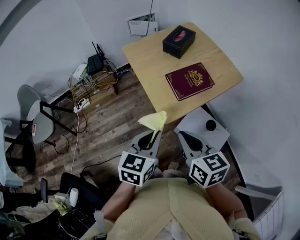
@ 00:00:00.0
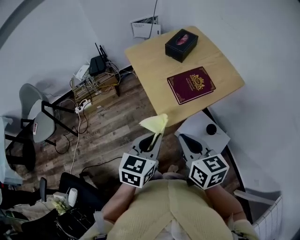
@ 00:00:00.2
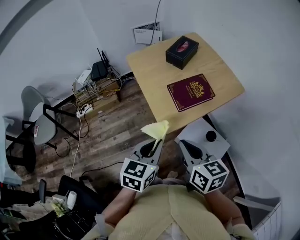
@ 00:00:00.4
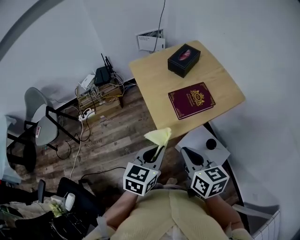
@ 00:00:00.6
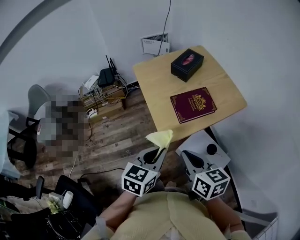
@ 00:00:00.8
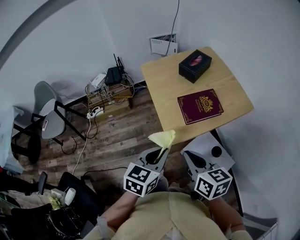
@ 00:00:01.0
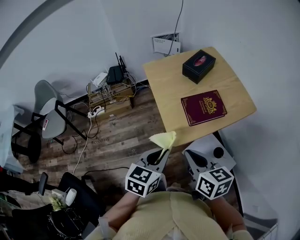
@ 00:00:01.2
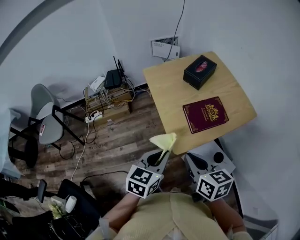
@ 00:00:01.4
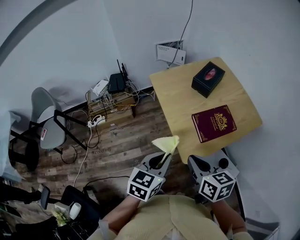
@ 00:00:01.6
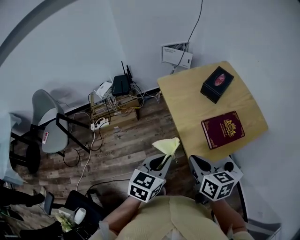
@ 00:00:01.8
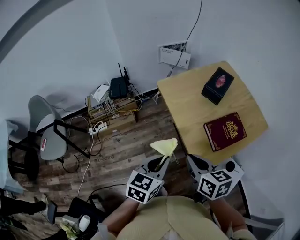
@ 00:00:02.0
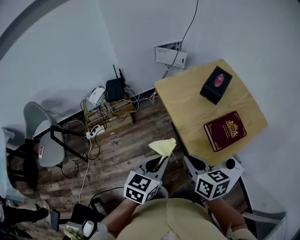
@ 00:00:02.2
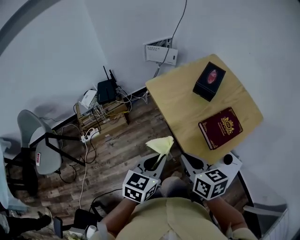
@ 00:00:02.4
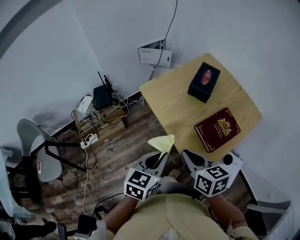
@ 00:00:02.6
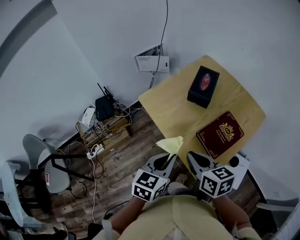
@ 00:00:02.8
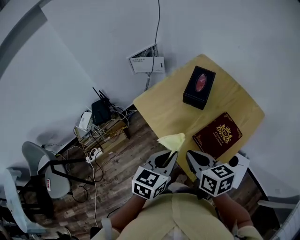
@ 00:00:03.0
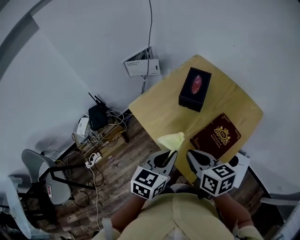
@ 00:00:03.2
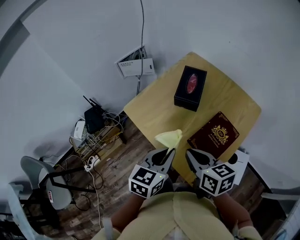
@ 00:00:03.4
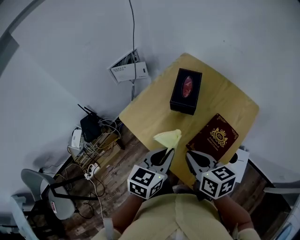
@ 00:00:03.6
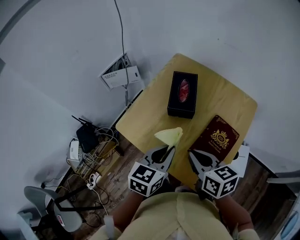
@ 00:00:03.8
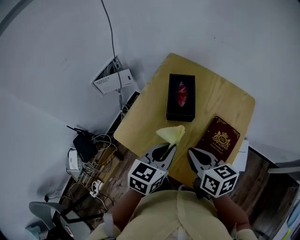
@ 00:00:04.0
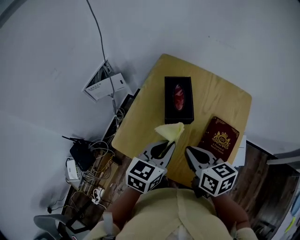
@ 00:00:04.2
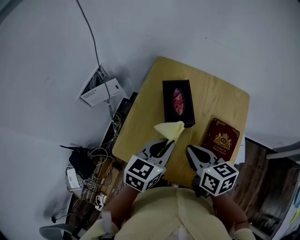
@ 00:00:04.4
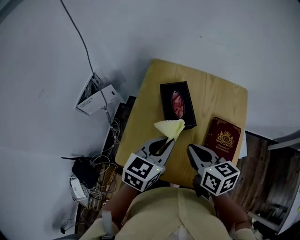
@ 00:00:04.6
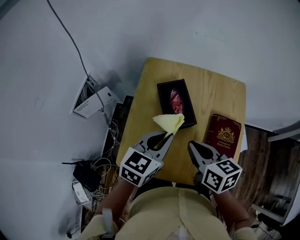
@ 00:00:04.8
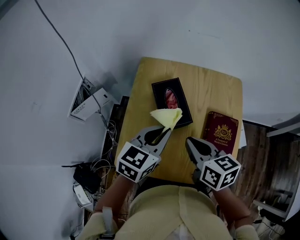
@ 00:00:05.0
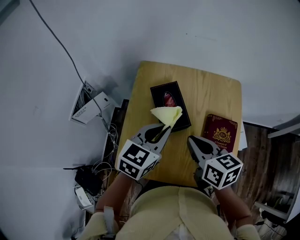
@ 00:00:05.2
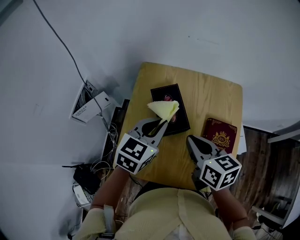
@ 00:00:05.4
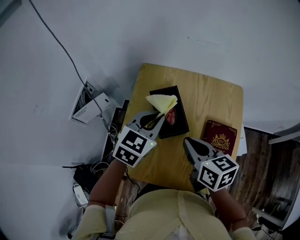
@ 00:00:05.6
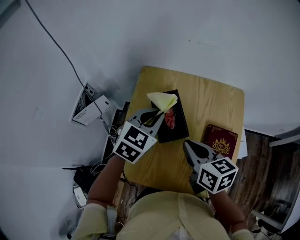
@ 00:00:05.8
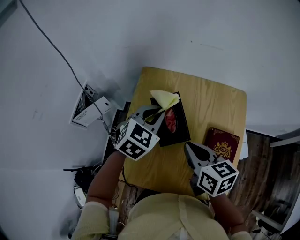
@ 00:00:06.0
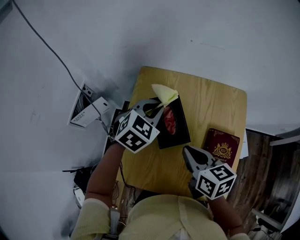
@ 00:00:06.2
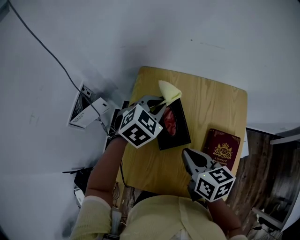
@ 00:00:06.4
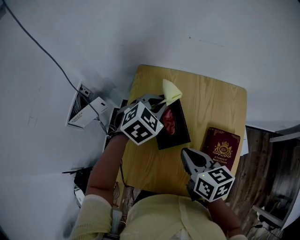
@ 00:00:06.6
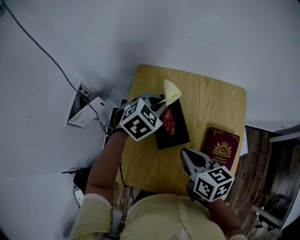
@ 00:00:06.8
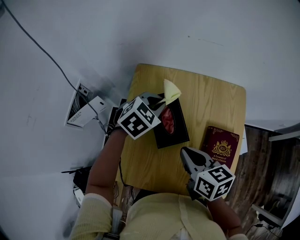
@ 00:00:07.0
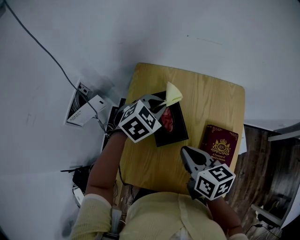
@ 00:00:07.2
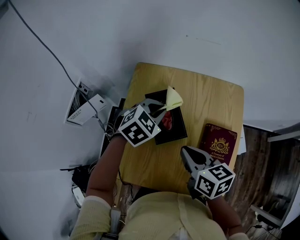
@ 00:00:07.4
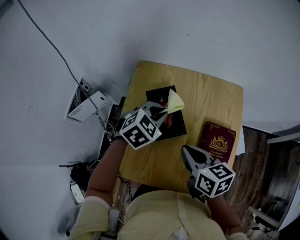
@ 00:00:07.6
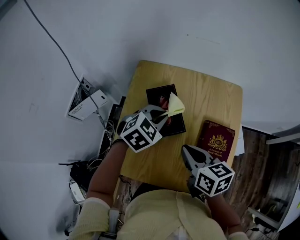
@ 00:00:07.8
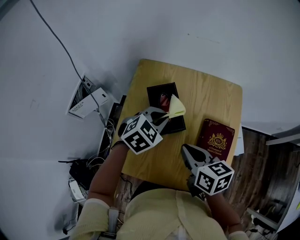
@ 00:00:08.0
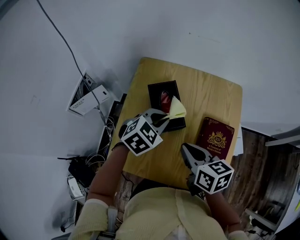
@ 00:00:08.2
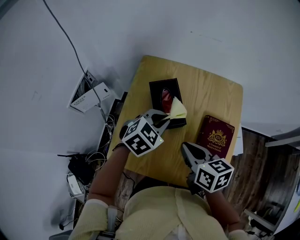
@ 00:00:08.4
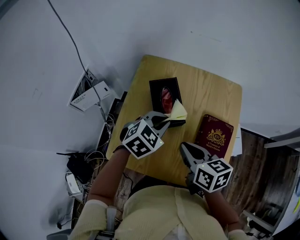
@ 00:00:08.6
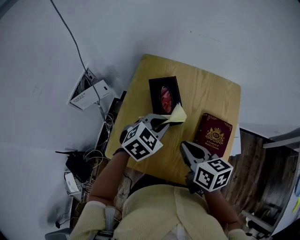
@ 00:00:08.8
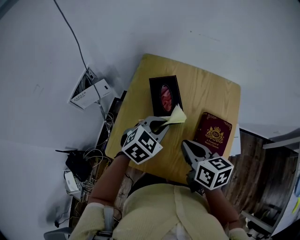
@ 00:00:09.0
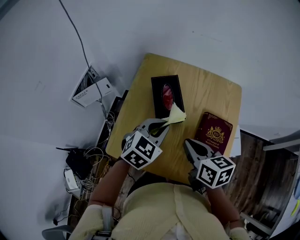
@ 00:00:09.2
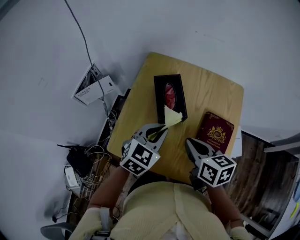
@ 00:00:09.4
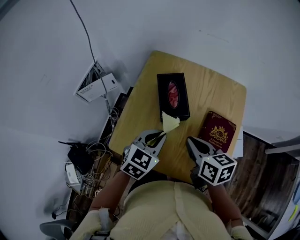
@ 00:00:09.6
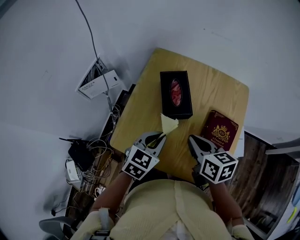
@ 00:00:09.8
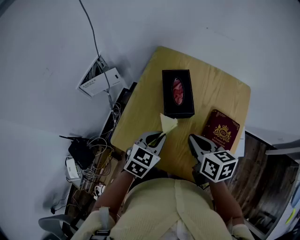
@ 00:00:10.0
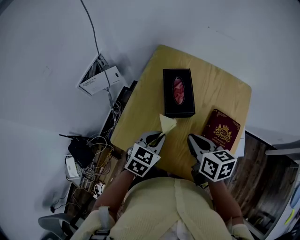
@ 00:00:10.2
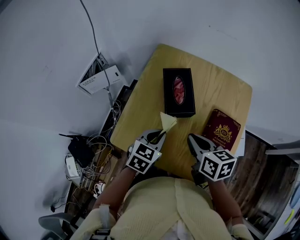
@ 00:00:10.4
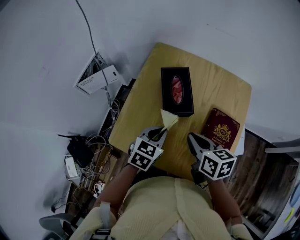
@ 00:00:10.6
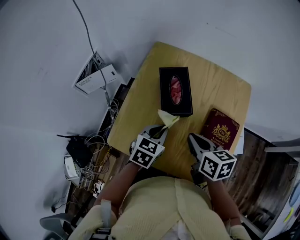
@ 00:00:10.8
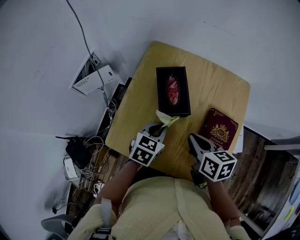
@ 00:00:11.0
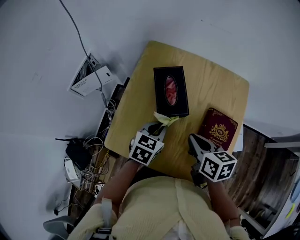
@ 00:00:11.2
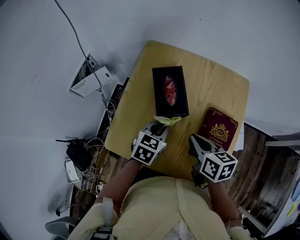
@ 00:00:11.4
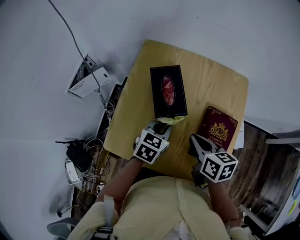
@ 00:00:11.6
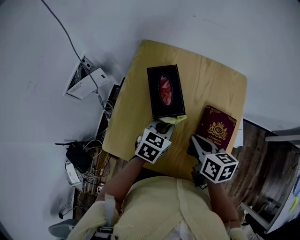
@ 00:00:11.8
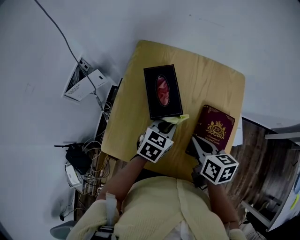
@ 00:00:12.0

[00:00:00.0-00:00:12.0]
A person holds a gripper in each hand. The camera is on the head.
00:00:00.0 to 00:00:01.6: The left gripper shifts roughly 10 cm forward and to the left, while the right gripper is displaced forward by roughly 10 cm.
00:00:01.6 to 00:00:03.0: The grippers both shift forward by approximately 15 cm.
00:00:03.0 to 00:00:04.4: The right gripper moves approximately 15 cm, and rotates about 30 degrees, while the left gripper changes place by approximately 20 cm, and changes its angle by approximately 30 degrees.
00:00:04.4 to 00:00:06.0: The right gripper goes approximately 10 cm forward. Meanwhile the left gripper moves forward, roughly 20 cm, and changes its angle by roughly 30 degrees.
00:00:06.0 to 00:00:07.6: The left gripper shifts by some 5 cm.
00:00:07.6 to 00:00:09.0: The left gripper travels backward by about 10 cm.
00:00:09.0 to 00:00:10.4: The left gripper goes roughly 10 cm backward and downward, and changes its angle by about 20 degrees.
00:00:10.4 to 00:00:12.0: The left gripper travels to the right and forward by about 10 cm. The right gripper is displaced to the right by roughly 5 cm.

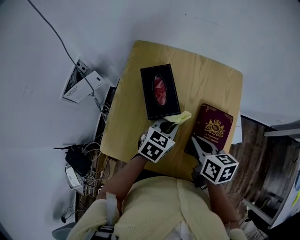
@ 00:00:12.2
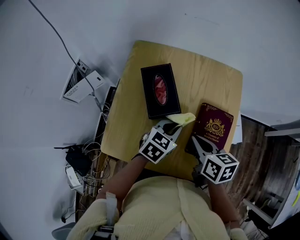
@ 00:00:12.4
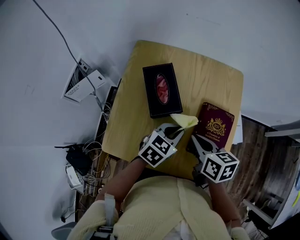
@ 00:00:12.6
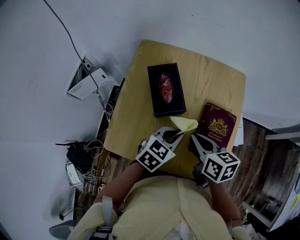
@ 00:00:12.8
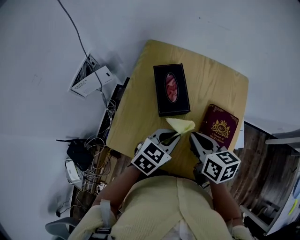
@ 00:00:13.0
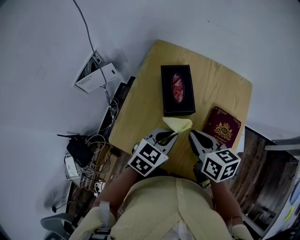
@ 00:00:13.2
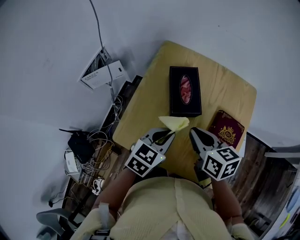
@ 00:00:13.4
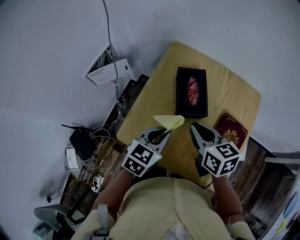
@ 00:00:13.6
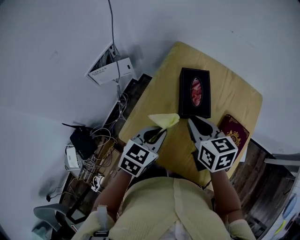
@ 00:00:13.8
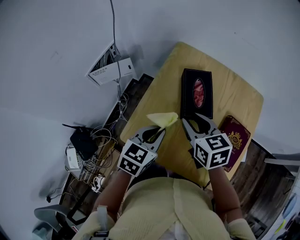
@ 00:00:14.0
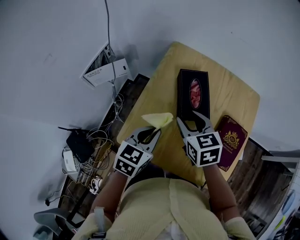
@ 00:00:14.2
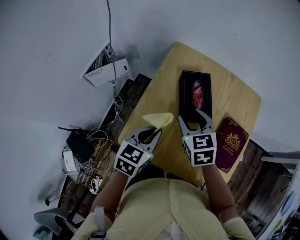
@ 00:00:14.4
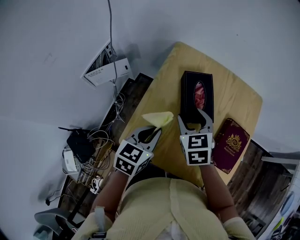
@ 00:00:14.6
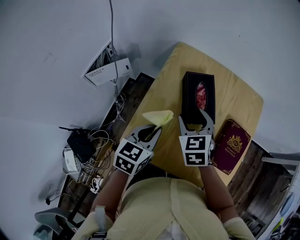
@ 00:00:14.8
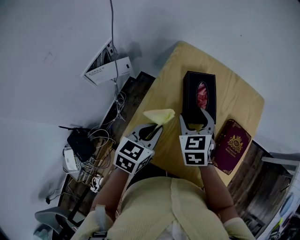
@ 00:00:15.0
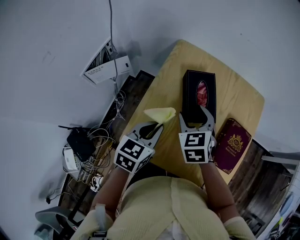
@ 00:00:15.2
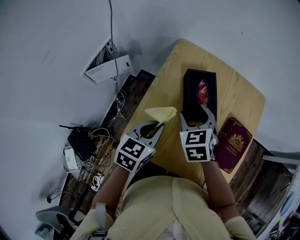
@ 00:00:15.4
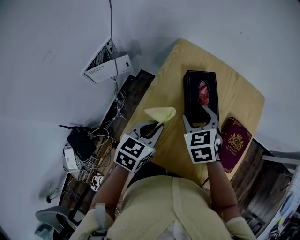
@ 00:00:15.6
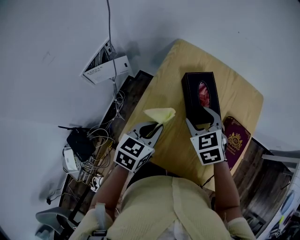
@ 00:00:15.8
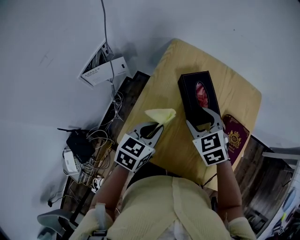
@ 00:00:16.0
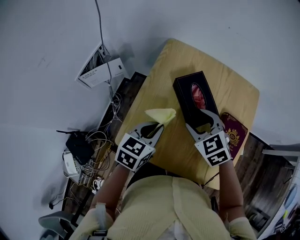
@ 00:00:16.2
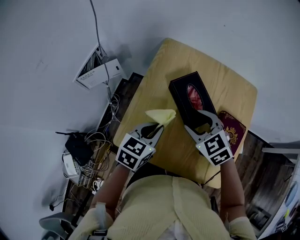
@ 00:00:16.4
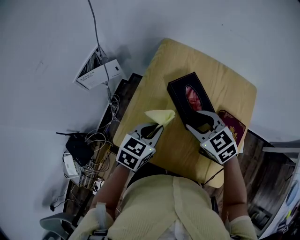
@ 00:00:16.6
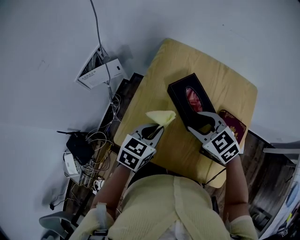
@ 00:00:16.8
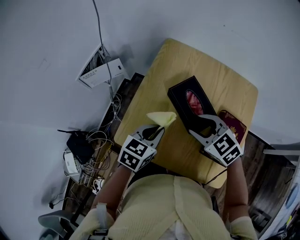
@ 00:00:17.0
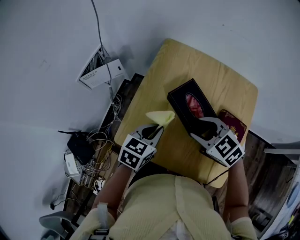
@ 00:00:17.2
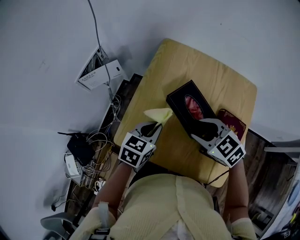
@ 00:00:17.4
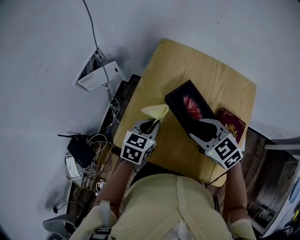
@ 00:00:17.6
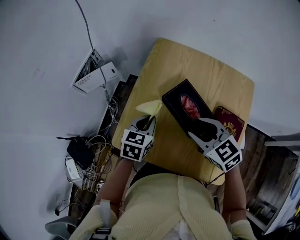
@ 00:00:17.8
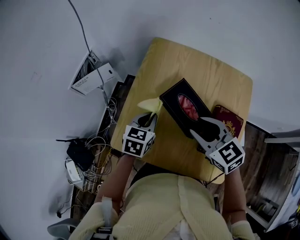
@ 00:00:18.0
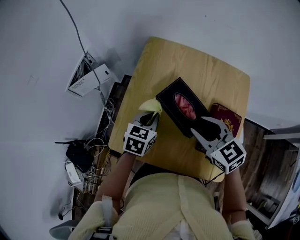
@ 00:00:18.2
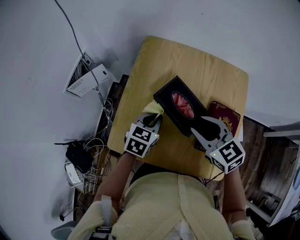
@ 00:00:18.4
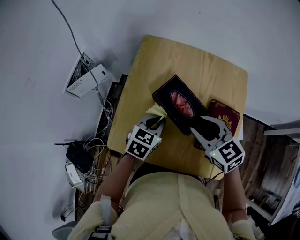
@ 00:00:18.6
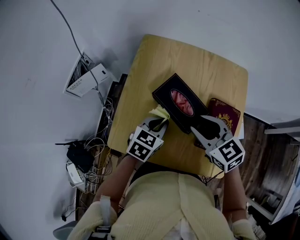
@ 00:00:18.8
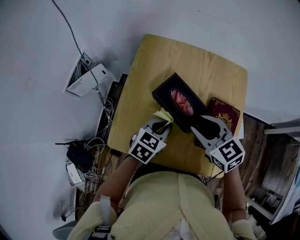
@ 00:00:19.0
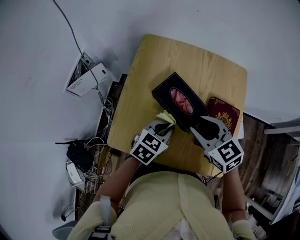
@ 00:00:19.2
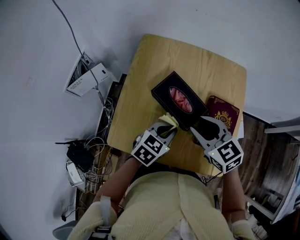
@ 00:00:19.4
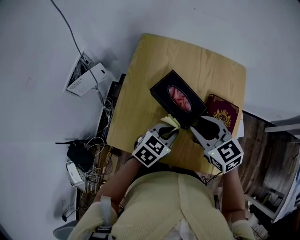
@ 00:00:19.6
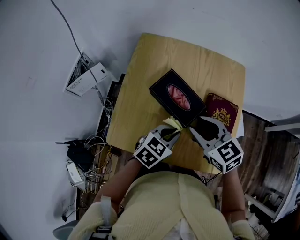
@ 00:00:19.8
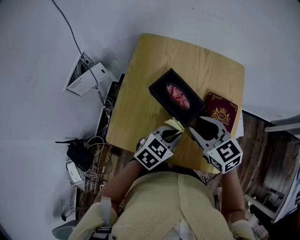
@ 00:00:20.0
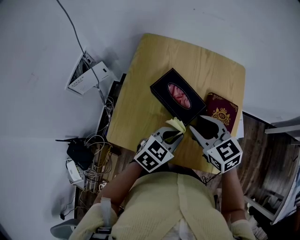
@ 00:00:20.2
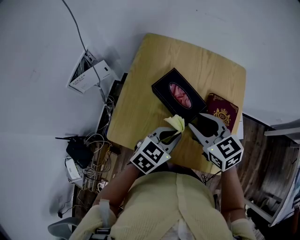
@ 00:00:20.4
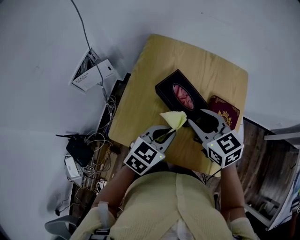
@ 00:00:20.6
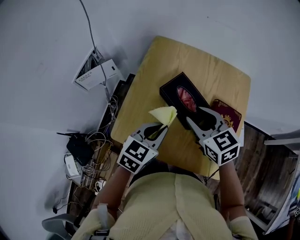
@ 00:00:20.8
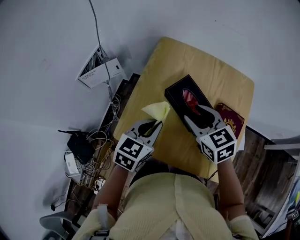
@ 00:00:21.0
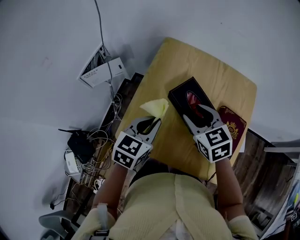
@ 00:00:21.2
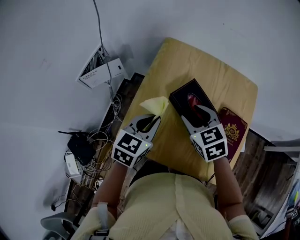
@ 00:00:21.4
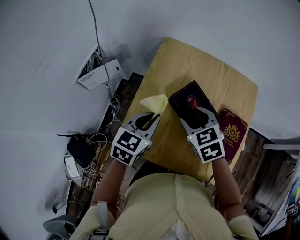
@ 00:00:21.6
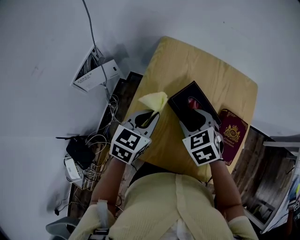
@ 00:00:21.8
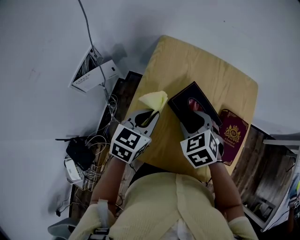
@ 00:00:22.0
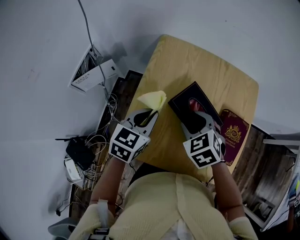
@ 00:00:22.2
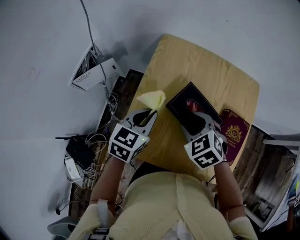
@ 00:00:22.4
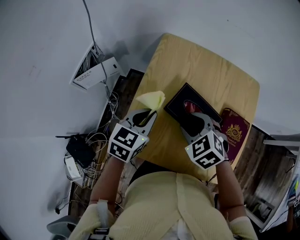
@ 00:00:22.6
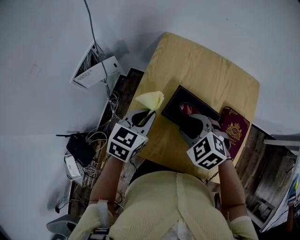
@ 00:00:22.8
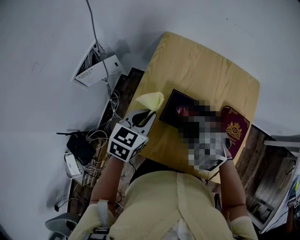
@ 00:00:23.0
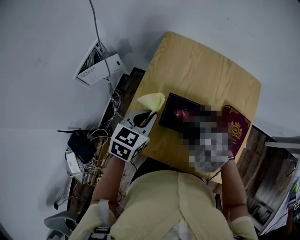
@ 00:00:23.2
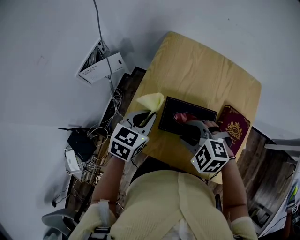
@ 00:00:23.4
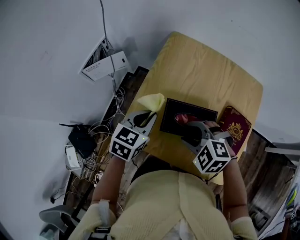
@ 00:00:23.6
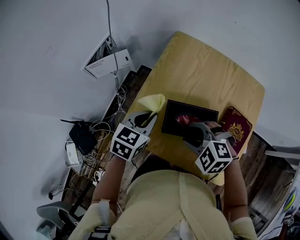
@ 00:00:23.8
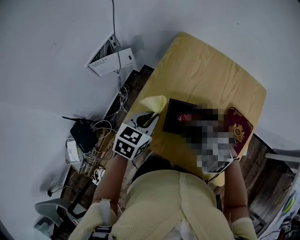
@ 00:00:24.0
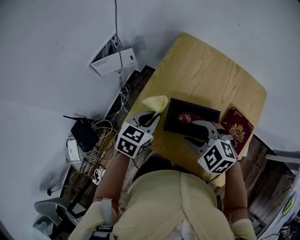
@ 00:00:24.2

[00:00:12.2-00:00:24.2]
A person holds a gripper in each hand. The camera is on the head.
00:00:12.2 to 00:00:13.8: The left gripper travels to the left, upward and backward by approximately 20 cm. The right gripper moves to the left, approximately 15 cm, and swivels about 30 degrees.
00:00:13.8 to 00:00:15.2: The right gripper goes about 5 cm forward, turns by approximately 30 degrees, and opens up.
00:00:15.2 to 00:00:16.6: The right gripper heads to the right, covering approximately 5 cm, and rotates roughly 30 degrees.
00:00:16.6 to 00:00:18.2: The right gripper moves some 5 cm; the left gripper is displaced forward by approximately 5 cm.
00:00:18.2 to 00:00:19.8: The left gripper travels to the right and backward by some 15 cm, and rotates some 30 degrees.
00:00:19.8 to 00:00:21.2: The right gripper moves to the left and forward, about 10 cm. The left gripper travels to the left and upward by approximately 15 cm, and turns by roughly 30 degrees.
00:00:21.2 to 00:00:22.6: The left gripper moves forward, approximately 5 cm; the right gripper moves some 5 cm, and rotates approximately 30 degrees.
00:00:22.6 to 00:00:24.2: The two grippers go approximately 5 cm backward. The right gripper rotates about 30 degrees.
